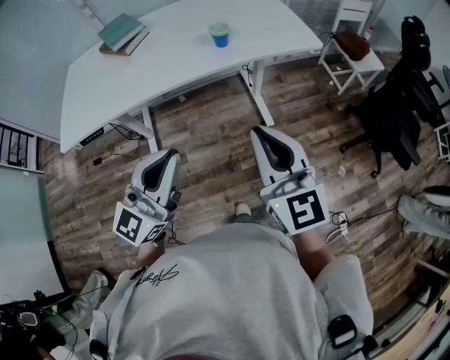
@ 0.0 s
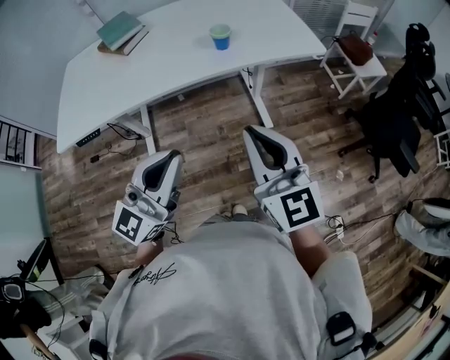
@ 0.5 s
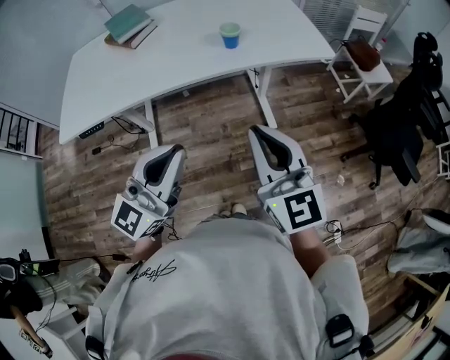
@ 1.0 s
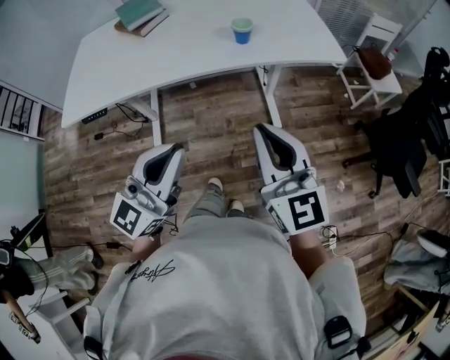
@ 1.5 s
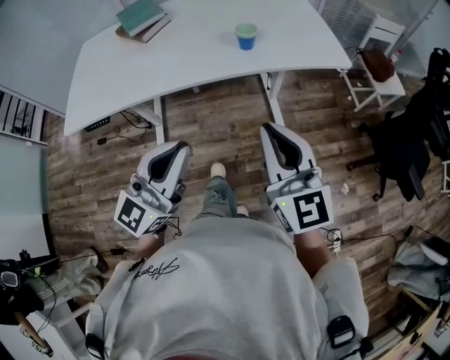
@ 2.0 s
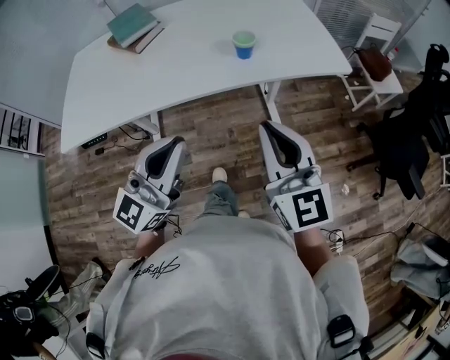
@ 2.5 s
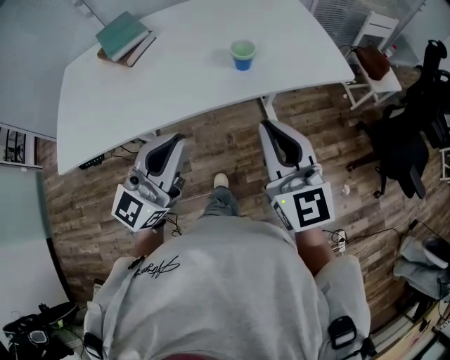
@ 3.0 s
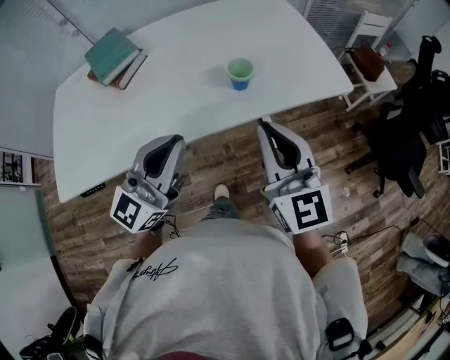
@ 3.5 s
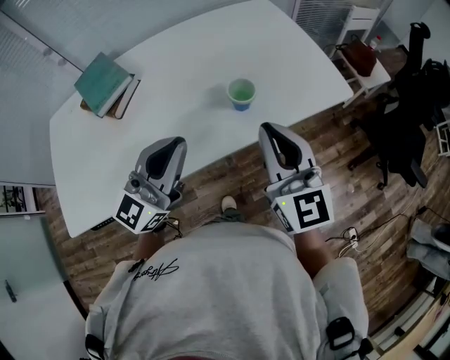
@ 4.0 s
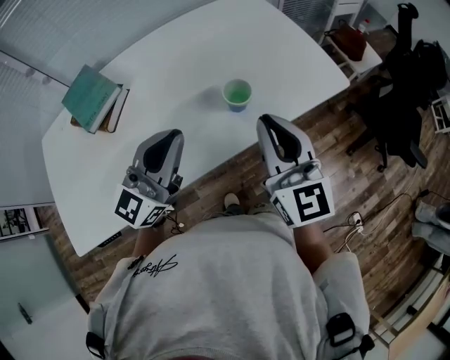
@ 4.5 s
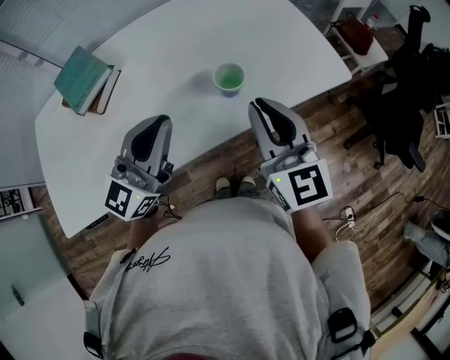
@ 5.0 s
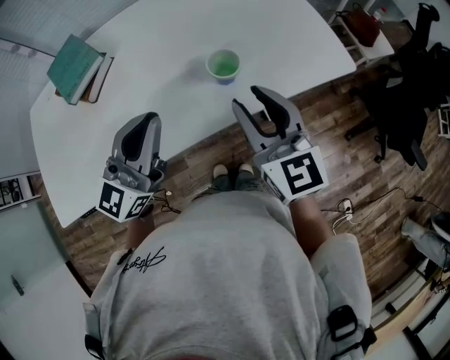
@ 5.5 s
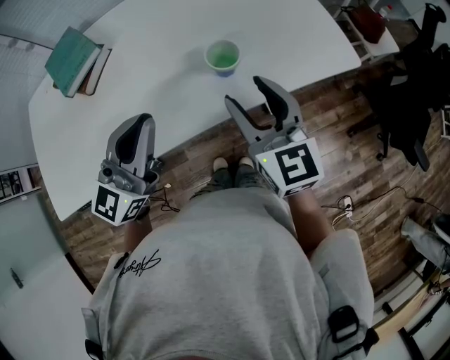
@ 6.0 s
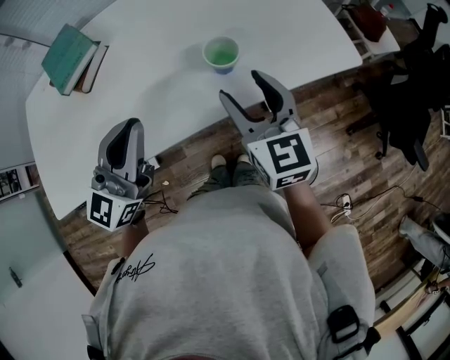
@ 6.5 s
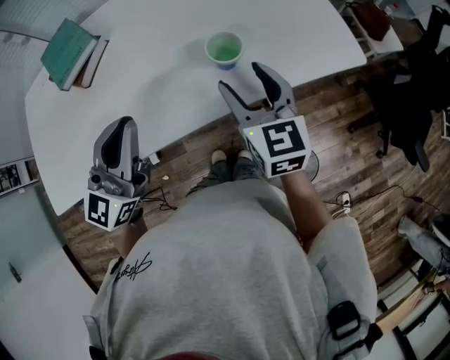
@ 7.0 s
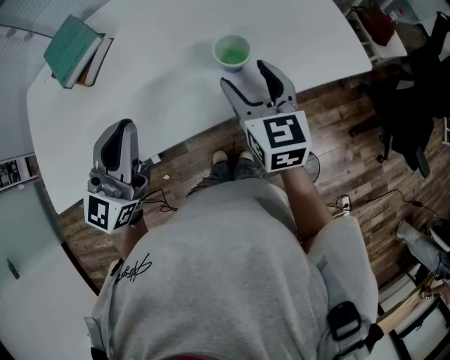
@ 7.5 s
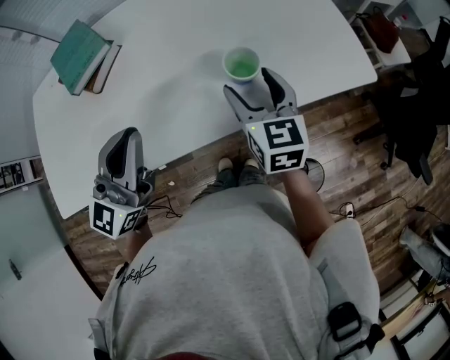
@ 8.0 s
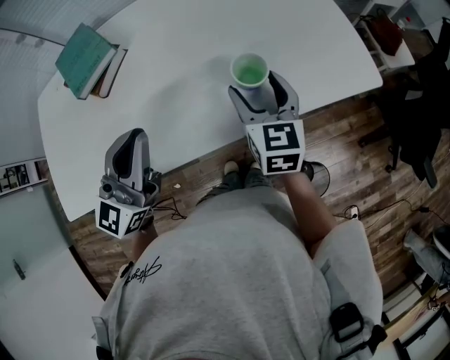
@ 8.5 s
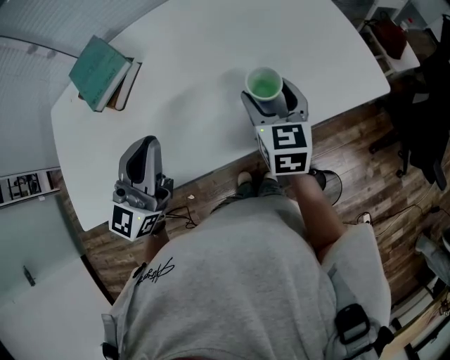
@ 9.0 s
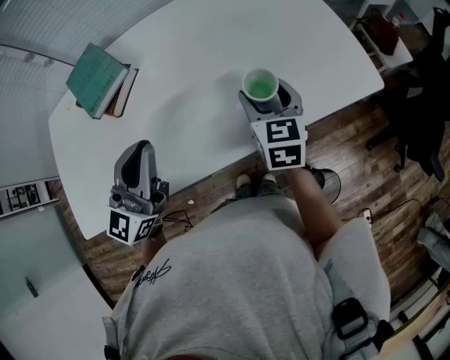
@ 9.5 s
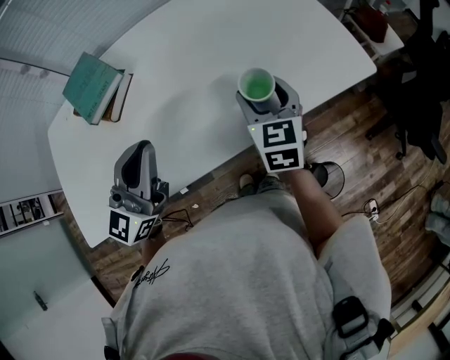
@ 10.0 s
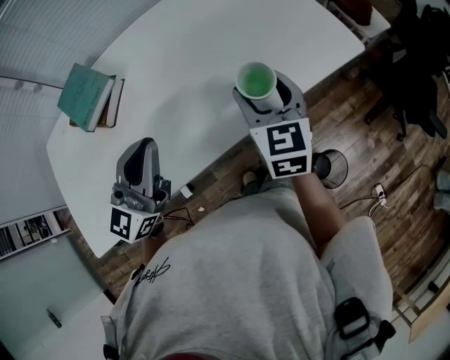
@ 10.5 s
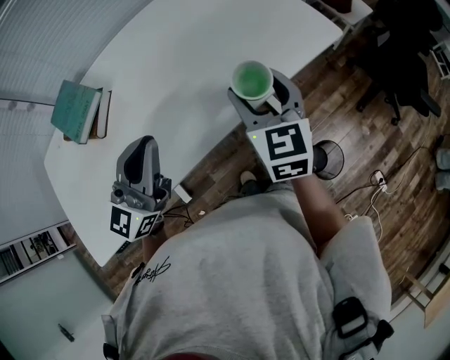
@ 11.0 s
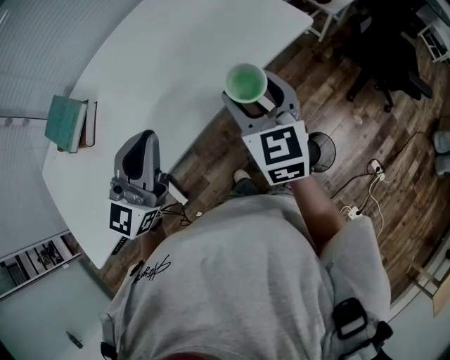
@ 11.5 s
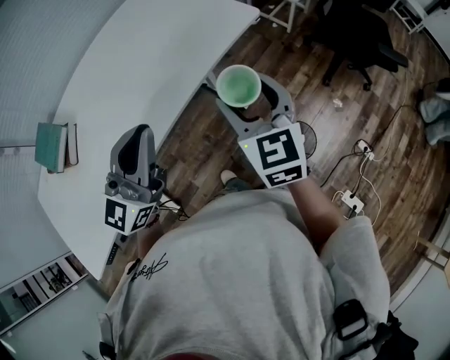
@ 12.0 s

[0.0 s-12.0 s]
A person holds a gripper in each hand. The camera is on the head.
0.0 to 2.0 s: The left gripper changes place by about 5 cm; the right gripper travels forward by some 5 cm.
2.0 to 4.0 s: The two grippers go roughly 25 cm forward.
4.0 to 6.0 s: The right gripper travels downward and forward by about 10 cm, and opens its fingers.
6.0 to 8.0 s: The left gripper ends up about 5 cm from where it was. The right gripper heads downward and forward, covering some 10 cm.
8.0 to 10.0 s: The grippers move only a little.
10.0 to 12.0 s: The right gripper moves to the right and backward, some 25 cm. The left gripper heads to the right, covering some 20 cm, and swivels approximately 20 degrees.

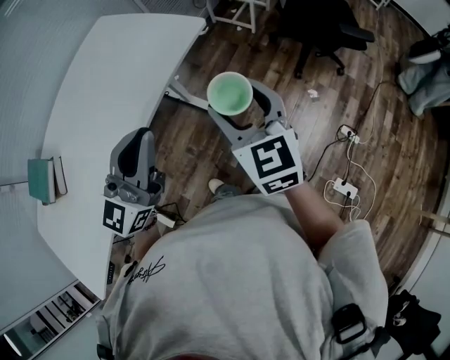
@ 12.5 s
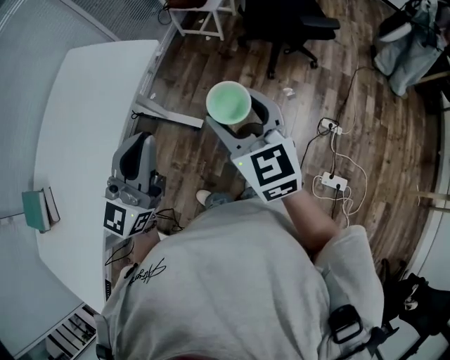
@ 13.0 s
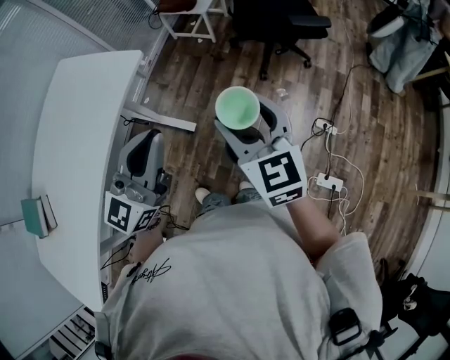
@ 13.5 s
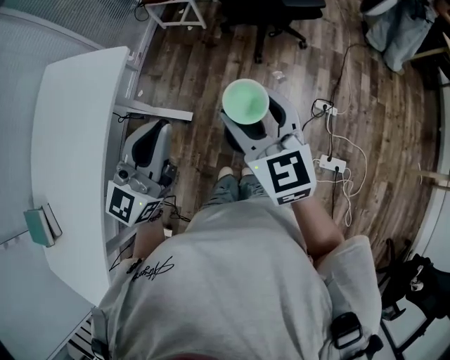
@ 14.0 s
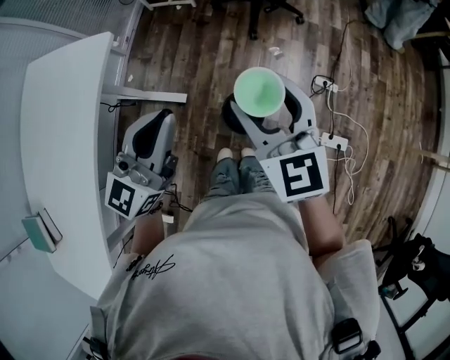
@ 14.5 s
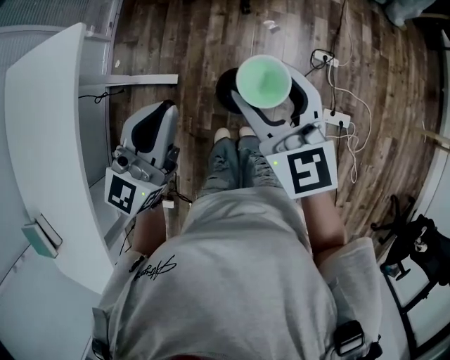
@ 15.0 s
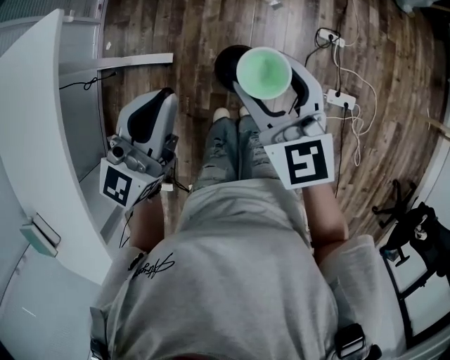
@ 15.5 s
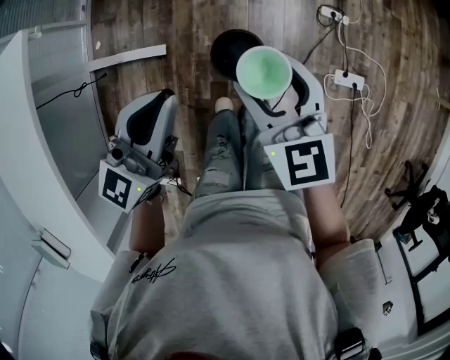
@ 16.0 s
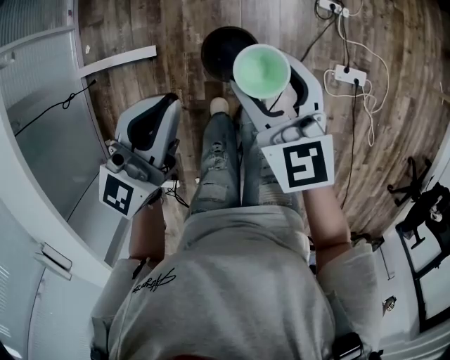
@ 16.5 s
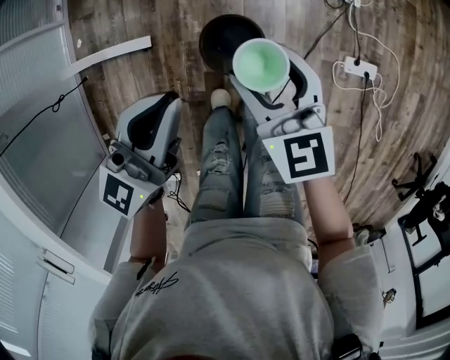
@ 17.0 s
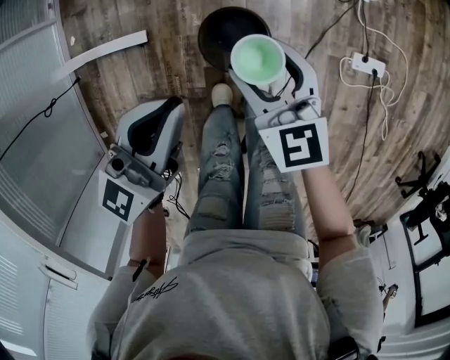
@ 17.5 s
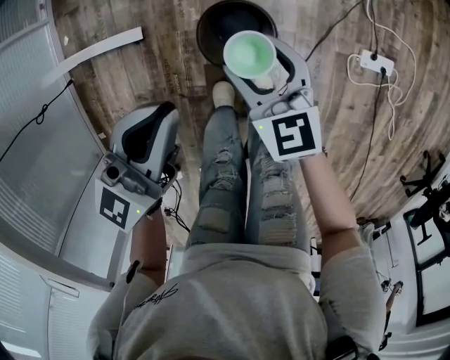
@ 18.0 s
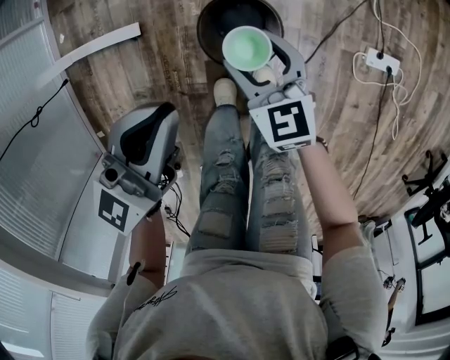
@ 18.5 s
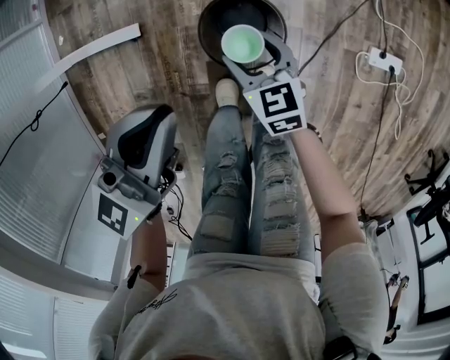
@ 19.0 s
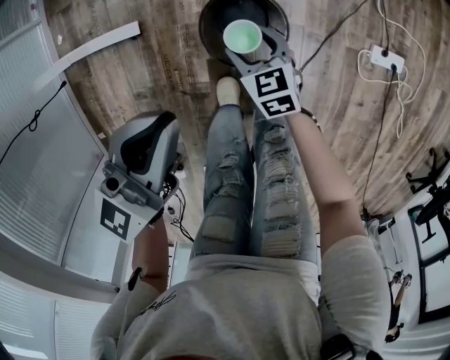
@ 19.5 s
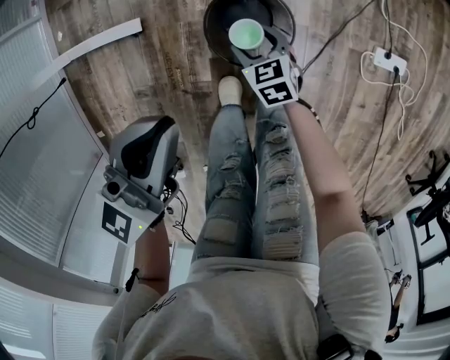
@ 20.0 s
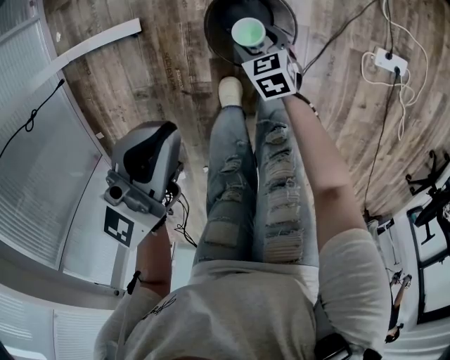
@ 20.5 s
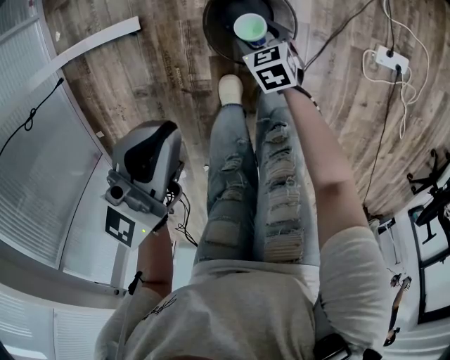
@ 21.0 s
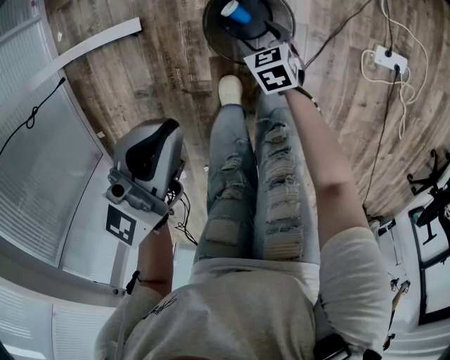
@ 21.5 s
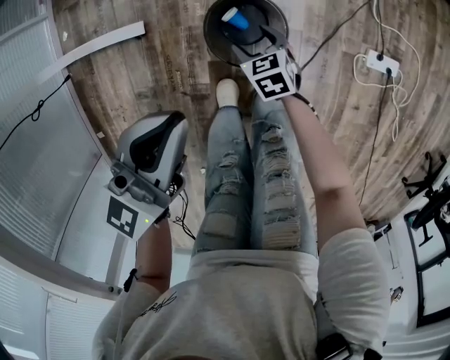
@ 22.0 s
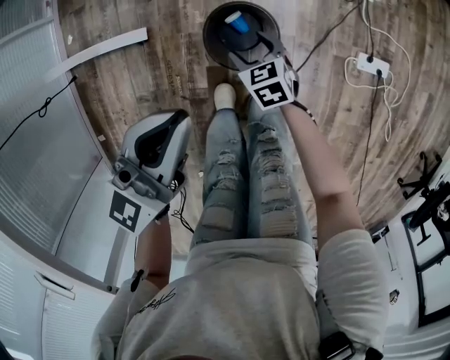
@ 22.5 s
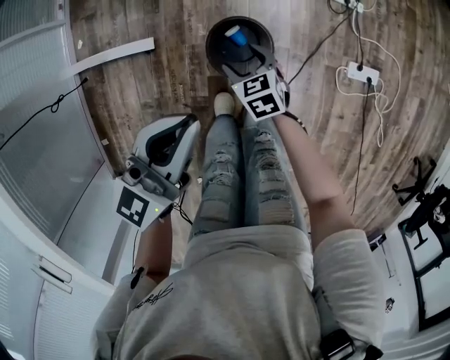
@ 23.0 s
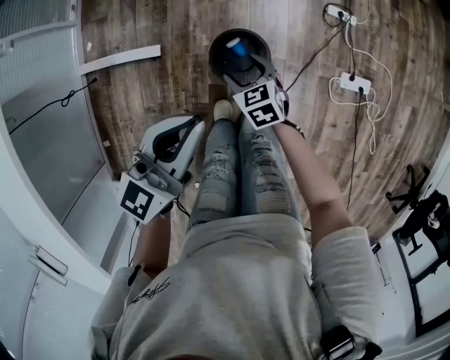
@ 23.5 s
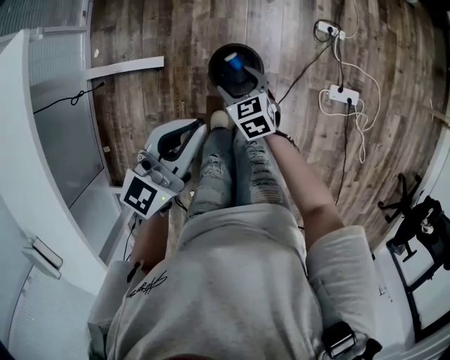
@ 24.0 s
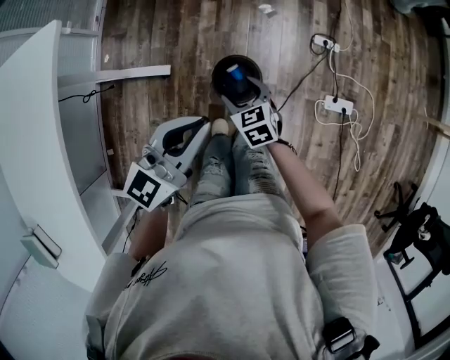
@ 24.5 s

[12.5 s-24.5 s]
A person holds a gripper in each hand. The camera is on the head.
12.5 to 14.5 s: The left gripper goes some 25 cm to the right, forward and downward, and changes its angle by approximately 30 degrees. Meanwhile the right gripper is displaced to the right by roughly 20 cm, and turns by about 20 degrees.
14.5 to 16.5 s: The two grippers go about 20 cm downward.
16.5 to 18.5 s: The left gripper heads downward, covering approximately 15 cm; the right gripper moves downward, approximately 30 cm.
18.5 to 20.5 s: The right gripper moves downward, some 20 cm, and turns by some 20 degrees.
20.5 to 22.5 s: The left gripper moves upward, approximately 5 cm. Meanwhile the right gripper travels upward by some 10 cm.
22.5 to 24.5 s: Both grippers move upward, about 20 cm.

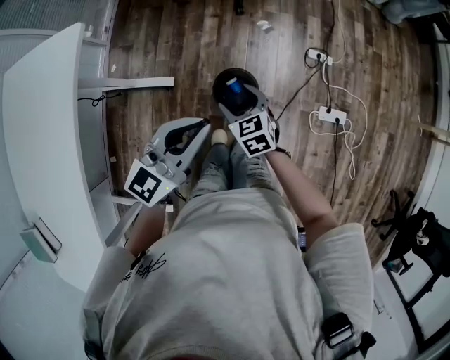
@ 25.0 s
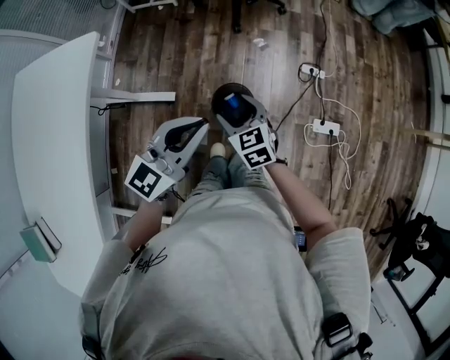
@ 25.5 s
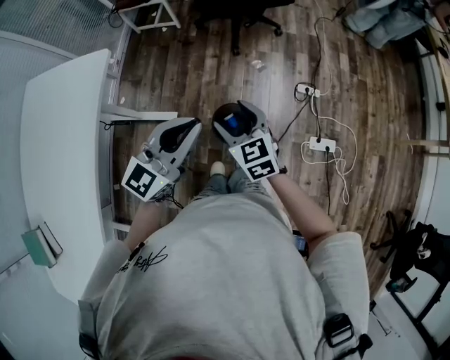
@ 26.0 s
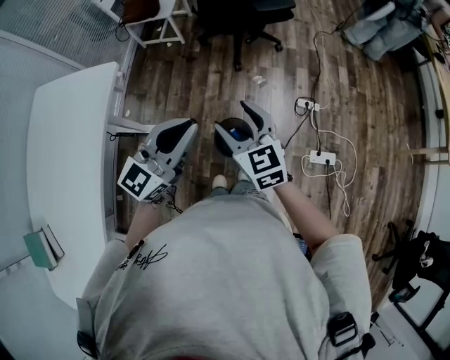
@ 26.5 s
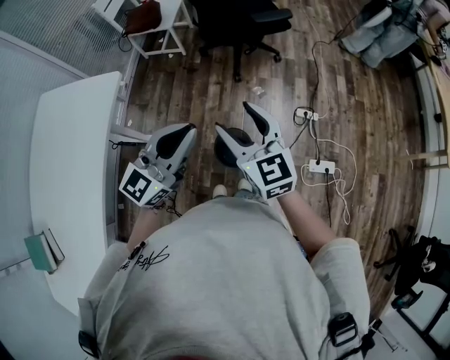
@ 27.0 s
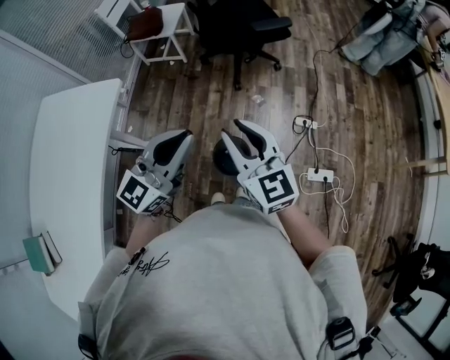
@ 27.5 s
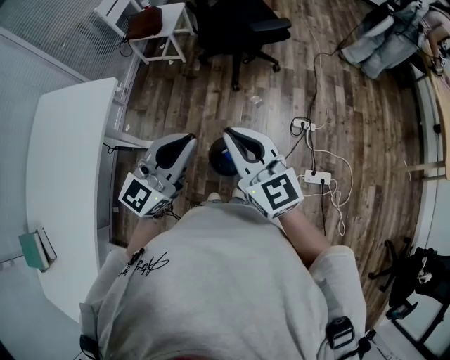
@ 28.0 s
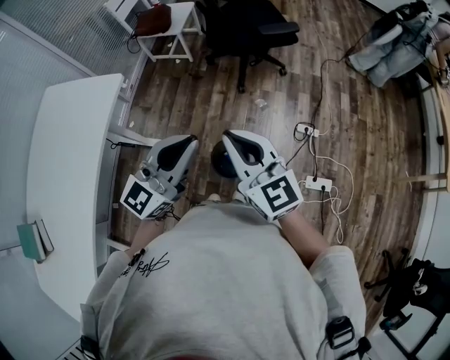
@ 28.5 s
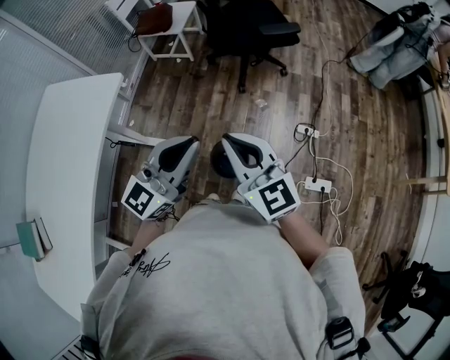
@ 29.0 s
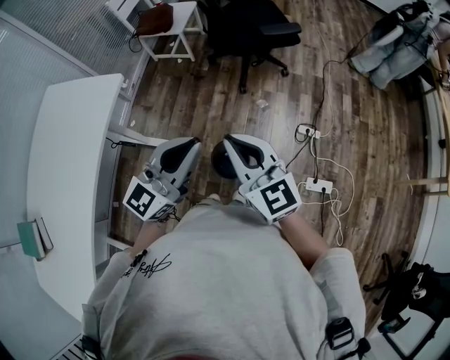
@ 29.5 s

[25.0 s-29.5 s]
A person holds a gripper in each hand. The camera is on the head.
25.0 to 27.0 s: The left gripper moves upward, approximately 15 cm. Meanwhile the right gripper moves upward, approximately 30 cm, and points its fingers roughly 30 degrees further upward.
27.0 to 29.5 s: The right gripper closes.
